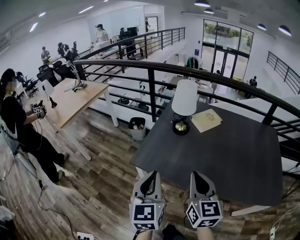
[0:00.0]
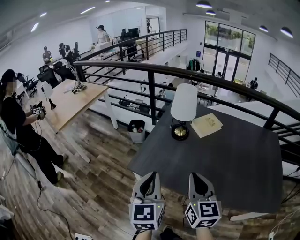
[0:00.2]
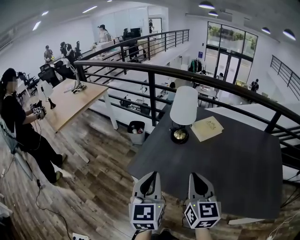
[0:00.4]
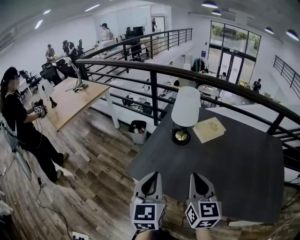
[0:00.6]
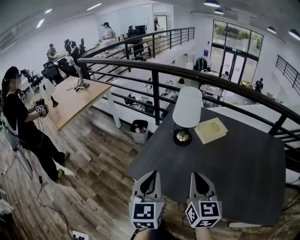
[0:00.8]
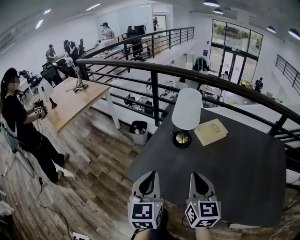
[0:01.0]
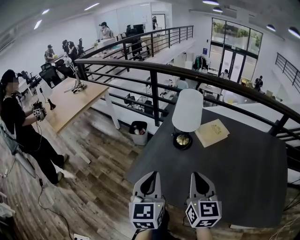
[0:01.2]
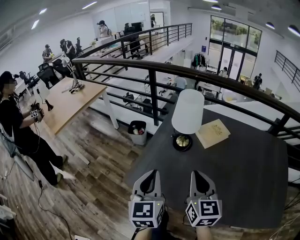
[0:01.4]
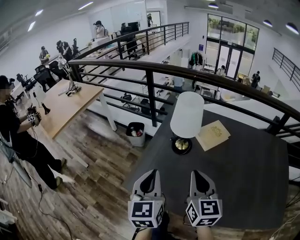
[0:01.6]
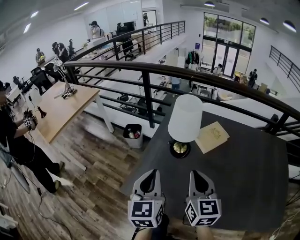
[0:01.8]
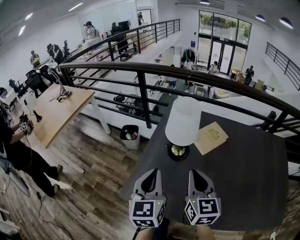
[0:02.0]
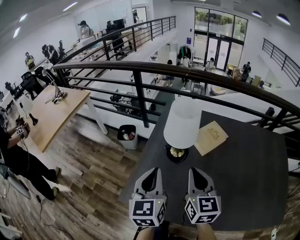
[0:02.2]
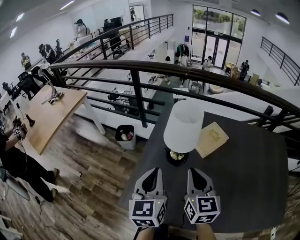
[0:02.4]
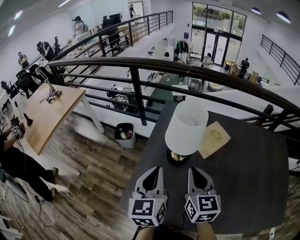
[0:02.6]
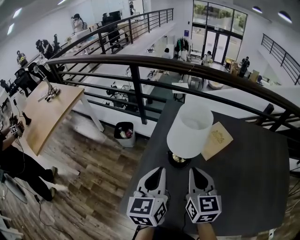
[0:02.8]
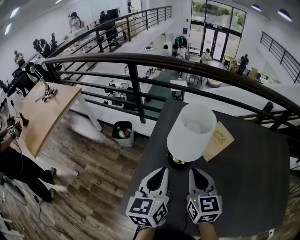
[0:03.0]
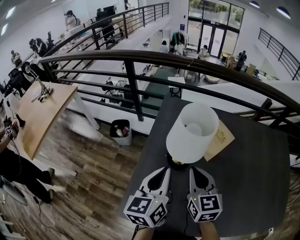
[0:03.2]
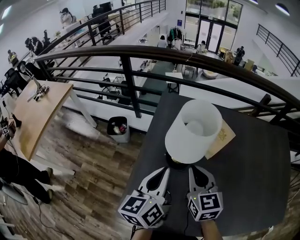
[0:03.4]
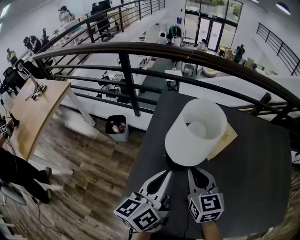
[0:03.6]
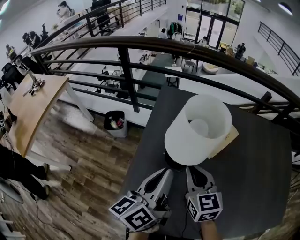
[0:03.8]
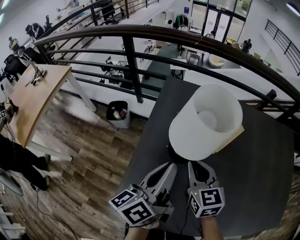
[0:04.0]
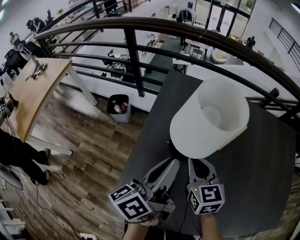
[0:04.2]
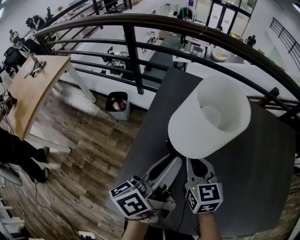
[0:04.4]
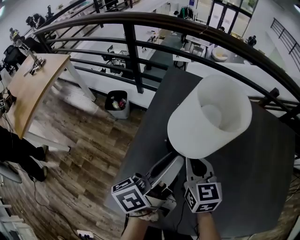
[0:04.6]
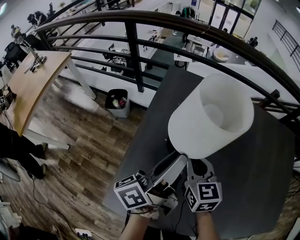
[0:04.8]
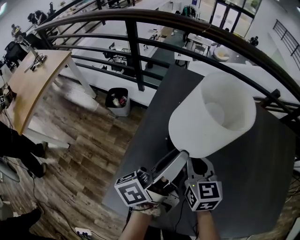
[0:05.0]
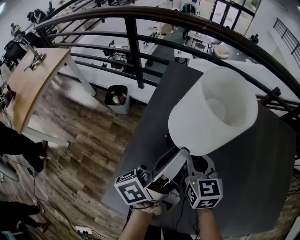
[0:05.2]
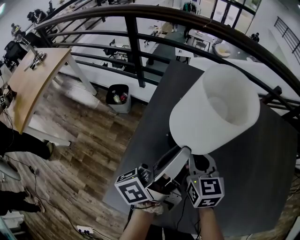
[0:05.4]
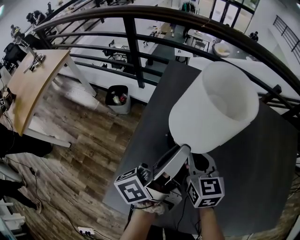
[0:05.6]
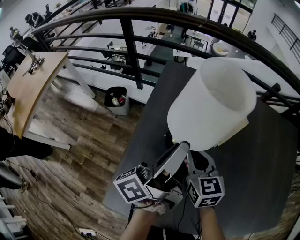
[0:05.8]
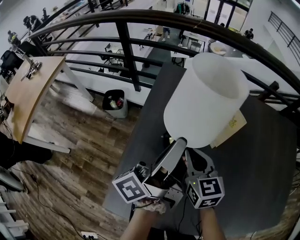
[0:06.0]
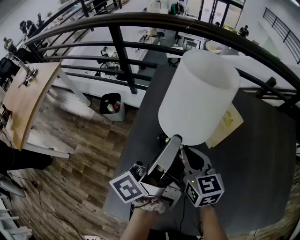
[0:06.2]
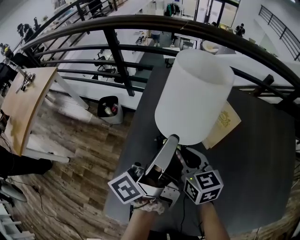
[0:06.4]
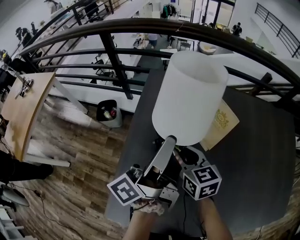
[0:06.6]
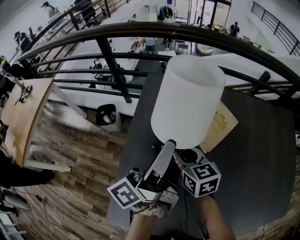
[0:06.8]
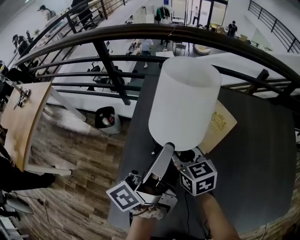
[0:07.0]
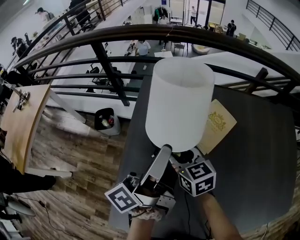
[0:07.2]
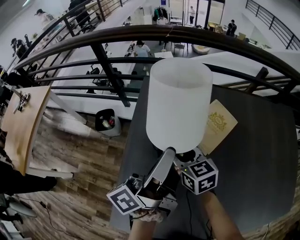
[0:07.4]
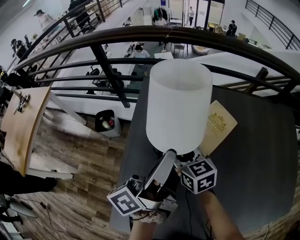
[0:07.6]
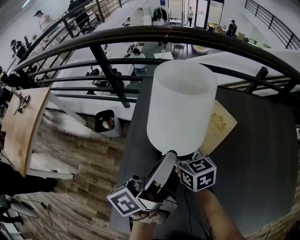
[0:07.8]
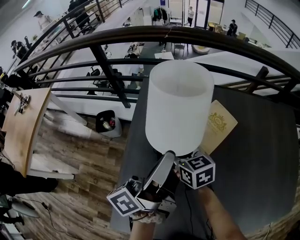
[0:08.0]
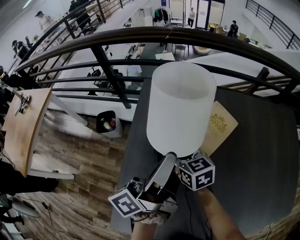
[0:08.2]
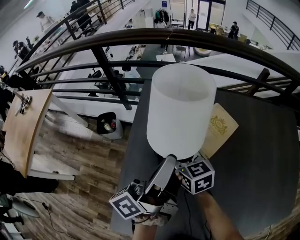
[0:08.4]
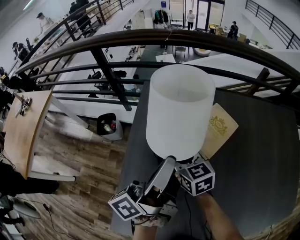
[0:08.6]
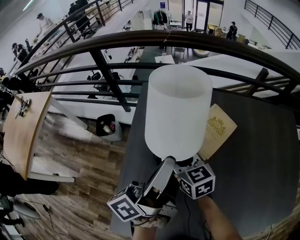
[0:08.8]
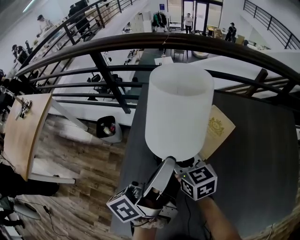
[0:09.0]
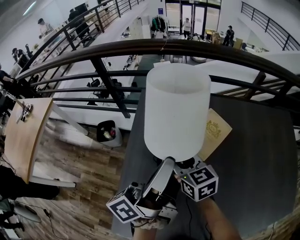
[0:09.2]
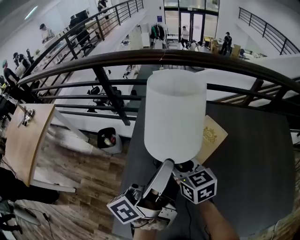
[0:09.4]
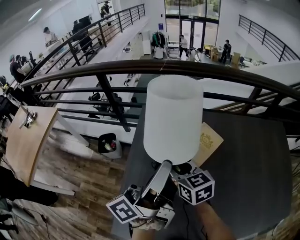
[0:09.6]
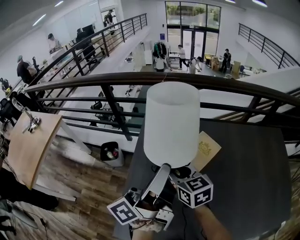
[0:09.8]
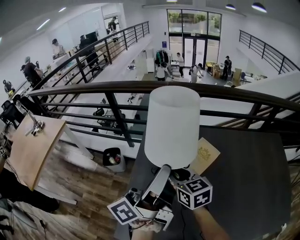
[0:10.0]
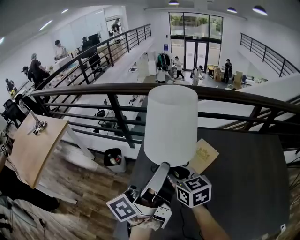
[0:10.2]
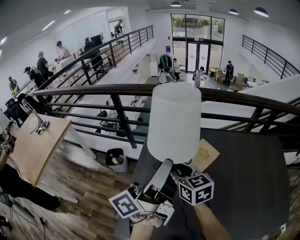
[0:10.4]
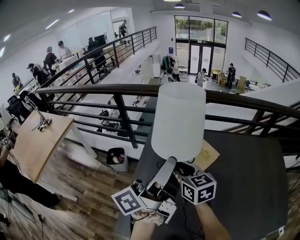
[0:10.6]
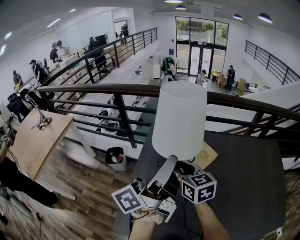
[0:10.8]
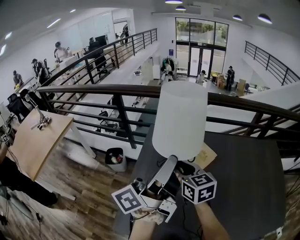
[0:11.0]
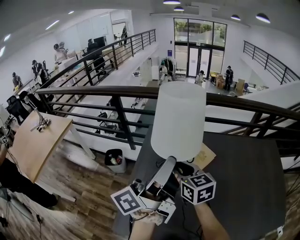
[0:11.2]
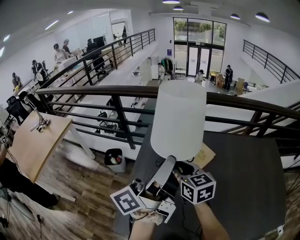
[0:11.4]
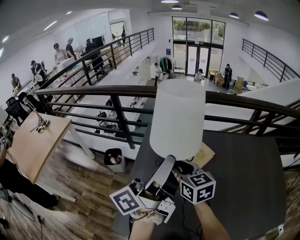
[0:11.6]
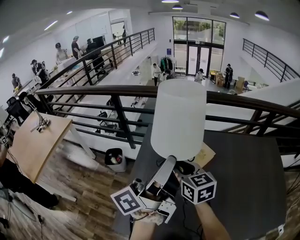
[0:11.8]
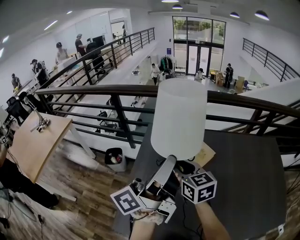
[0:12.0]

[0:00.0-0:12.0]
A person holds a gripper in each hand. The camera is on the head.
0:00.0 to 0:01.6: The two grippers go approximately 20 cm forward.
0:01.6 to 0:03.0: Both grippers move forward, about 15 cm. The left gripper swivels some 20 degrees.
0:03.0 to 0:04.4: The right gripper moves downward and forward, some 10 cm; the left gripper moves approximately 5 cm, rolls counterclockwise, seen from behind, by approximately 40 degrees, and opens its fingers.
0:04.4 to 0:06.0: The left gripper shifts by roughly 5 cm.
0:06.0 to 0:07.6: The right gripper moves forward, approximately 5 cm, and opens.
0:07.6 to 0:09.0: There are only small adjustments of the grippers.
0:09.0 to 0:10.4: The grippers both shift upward by about 15 cm.
0:10.4 to 0:12.0: The grippers move only a little.

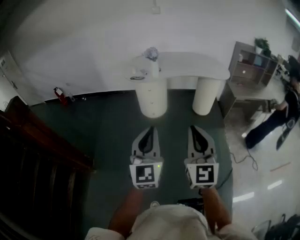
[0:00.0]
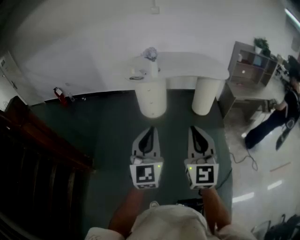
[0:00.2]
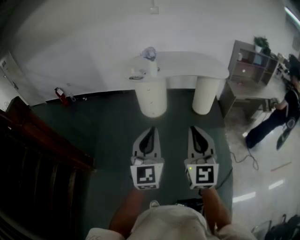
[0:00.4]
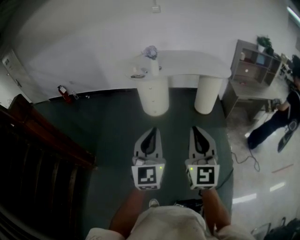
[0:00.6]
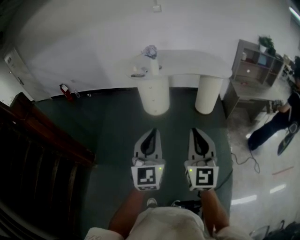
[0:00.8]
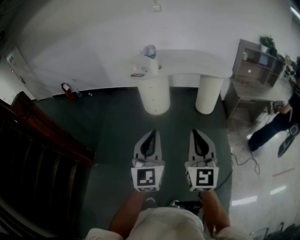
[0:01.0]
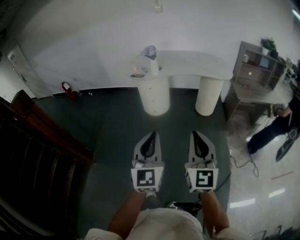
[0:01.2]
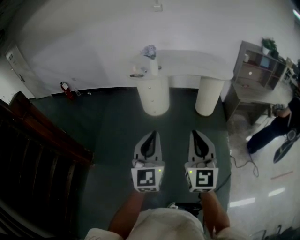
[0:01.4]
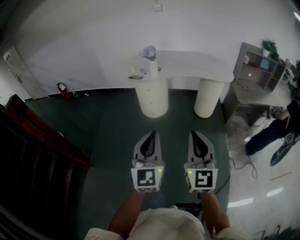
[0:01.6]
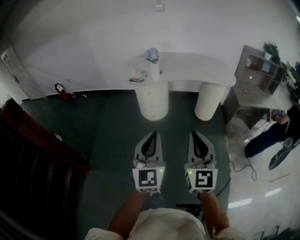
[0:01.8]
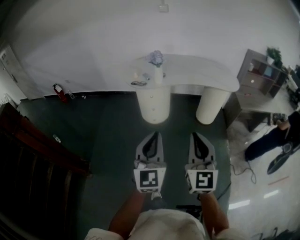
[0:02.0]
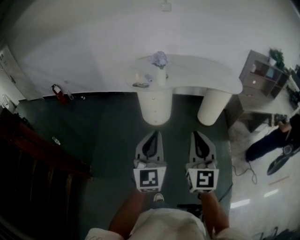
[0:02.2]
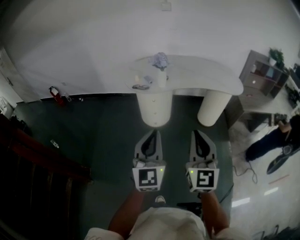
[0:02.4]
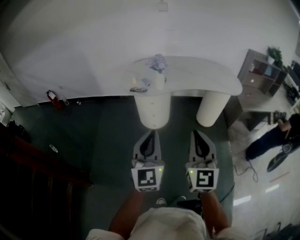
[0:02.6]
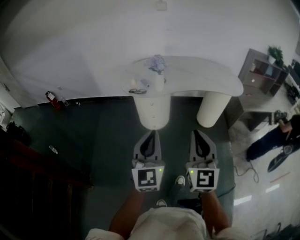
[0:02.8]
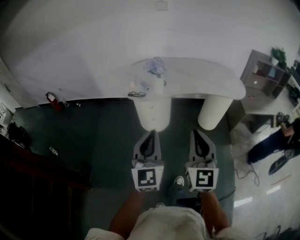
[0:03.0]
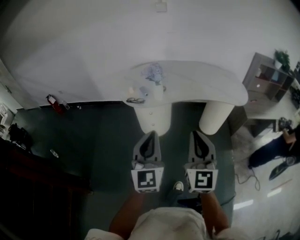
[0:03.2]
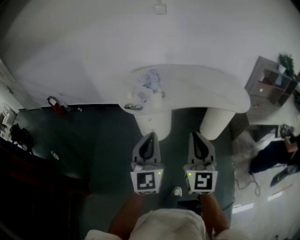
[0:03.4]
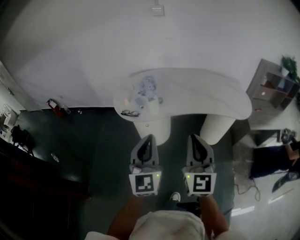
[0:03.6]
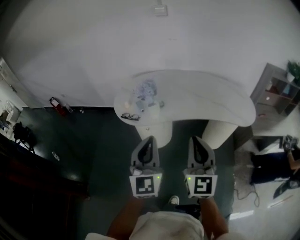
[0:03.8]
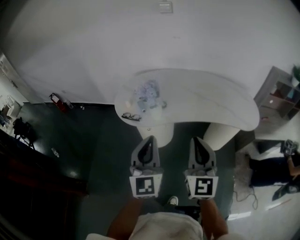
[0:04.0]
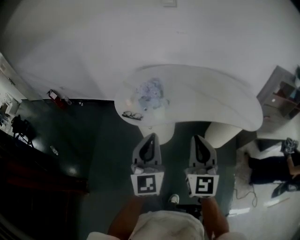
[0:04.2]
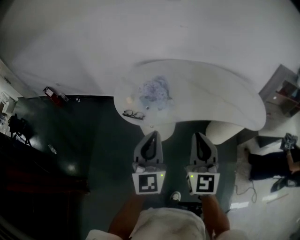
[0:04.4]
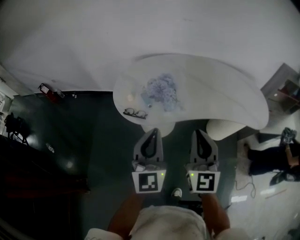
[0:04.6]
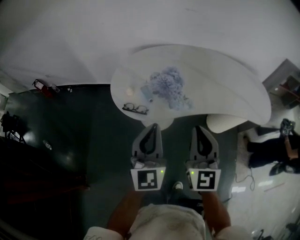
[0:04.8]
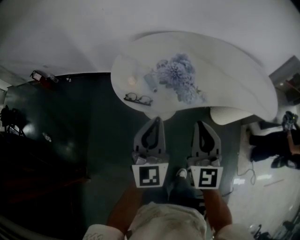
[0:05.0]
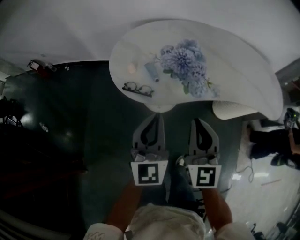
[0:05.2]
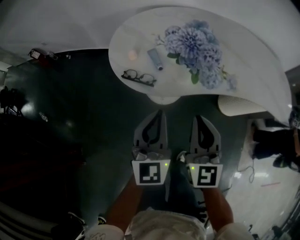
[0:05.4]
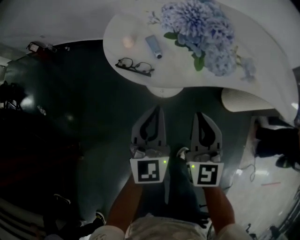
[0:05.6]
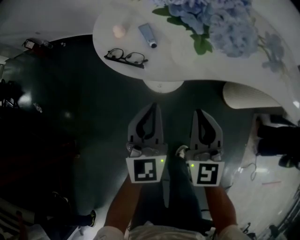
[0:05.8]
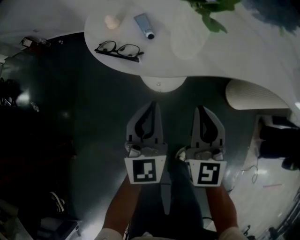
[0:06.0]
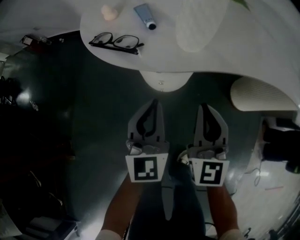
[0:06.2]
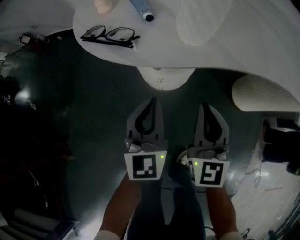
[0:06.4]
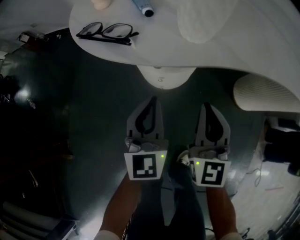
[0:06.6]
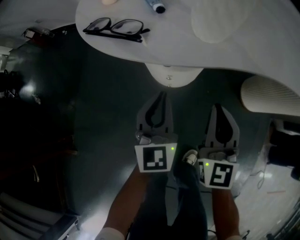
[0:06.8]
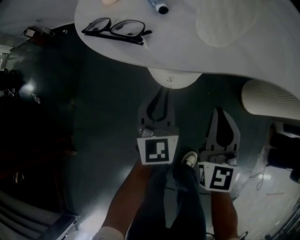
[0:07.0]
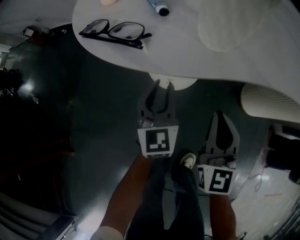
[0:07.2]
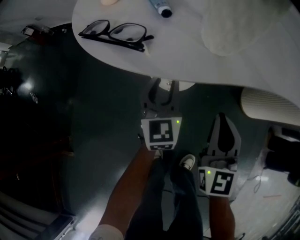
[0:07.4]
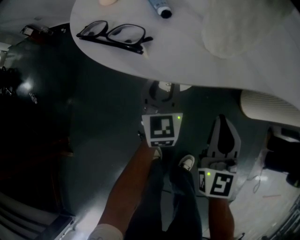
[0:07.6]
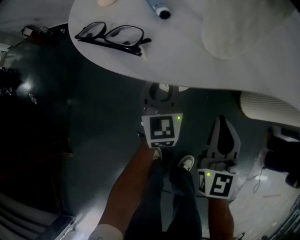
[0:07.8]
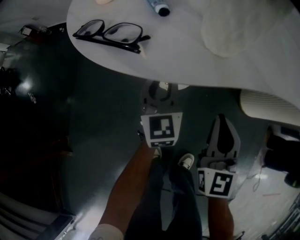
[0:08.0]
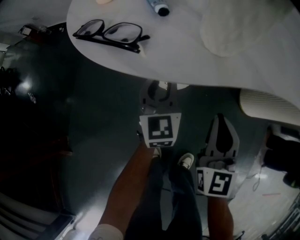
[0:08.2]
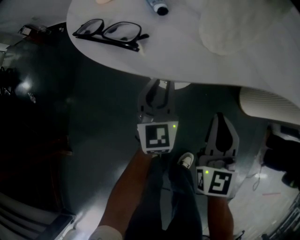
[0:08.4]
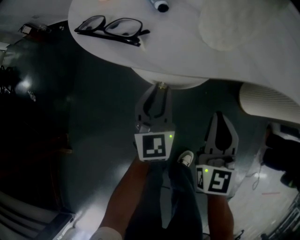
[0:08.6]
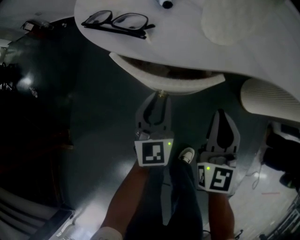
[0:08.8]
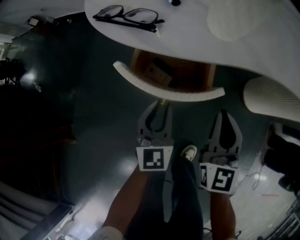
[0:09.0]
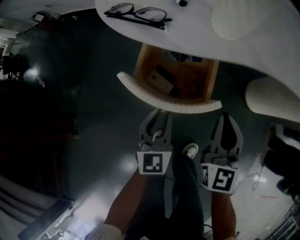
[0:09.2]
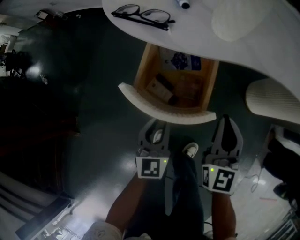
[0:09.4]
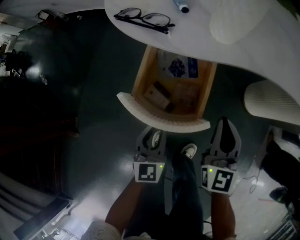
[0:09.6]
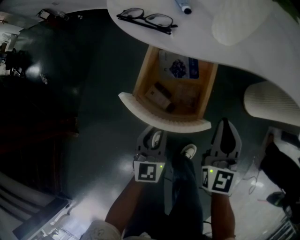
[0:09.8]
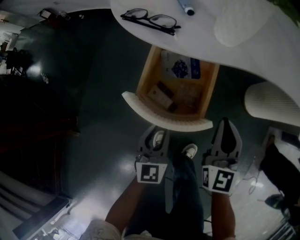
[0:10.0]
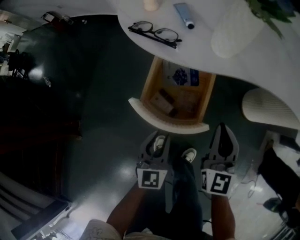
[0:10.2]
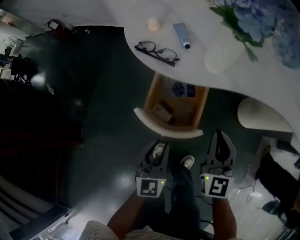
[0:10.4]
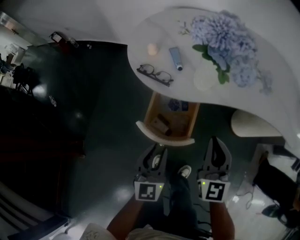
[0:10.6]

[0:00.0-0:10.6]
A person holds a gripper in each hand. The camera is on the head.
0:00.0 to 0:01.6: Both grippers travel together to the right, roughly 5 cm.
0:01.6 to 0:03.0: The two grippers go roughly 25 cm forward.
0:03.0 to 0:04.6: Both grippers move forward, some 30 cm.
0:04.6 to 0:06.0: The two grippers go roughly 30 cm downward.
0:06.0 to 0:07.6: The right gripper goes approximately 10 cm downward, while the left gripper moves downward and forward, roughly 20 cm, and opens up.
0:07.6 to 0:09.0: The left gripper shifts some 15 cm backward.
0:09.0 to 0:10.6: The right gripper shifts roughly 15 cm upward; the left gripper goes about 20 cm upward and backward.

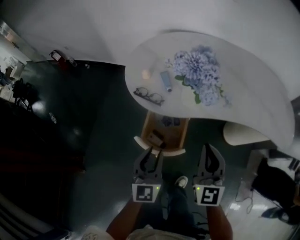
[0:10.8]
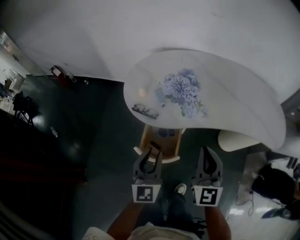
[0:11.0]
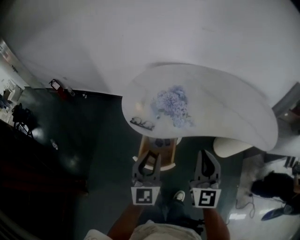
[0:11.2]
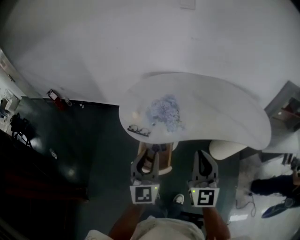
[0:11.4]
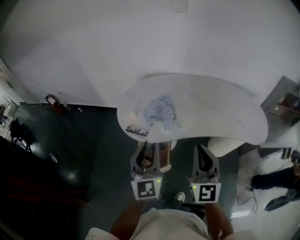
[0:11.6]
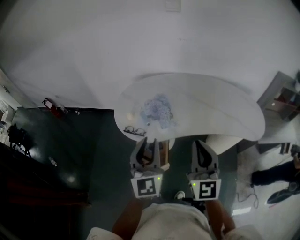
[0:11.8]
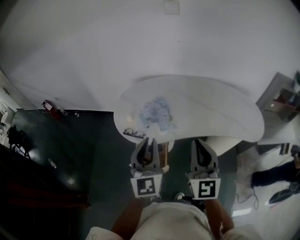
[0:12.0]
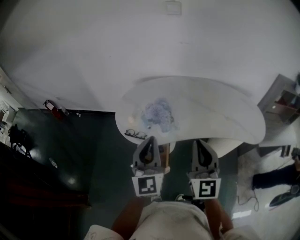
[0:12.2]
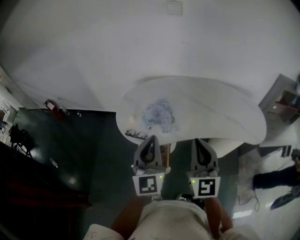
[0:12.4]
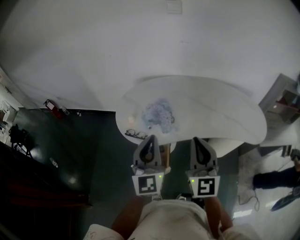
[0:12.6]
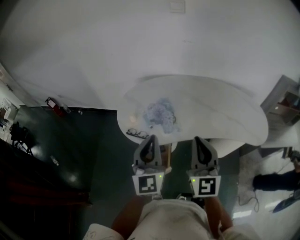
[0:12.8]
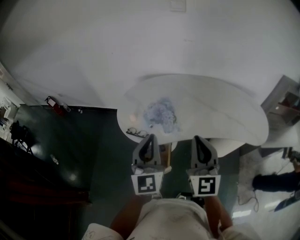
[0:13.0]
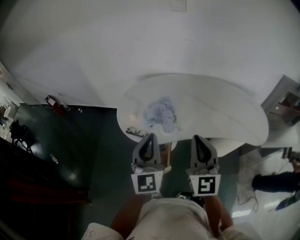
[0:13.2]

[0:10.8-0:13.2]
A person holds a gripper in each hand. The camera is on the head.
0:10.8 to 0:12.0: The two grippers go about 25 cm upward. The left gripper changes its angle by approximately 20 degrees.
0:12.0 to 0:13.2: The grippers stay close to where they were, moving slightly.
